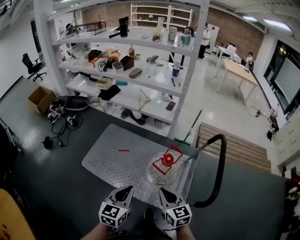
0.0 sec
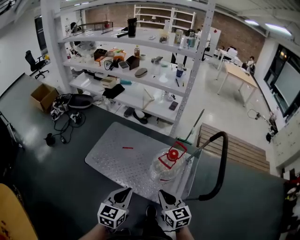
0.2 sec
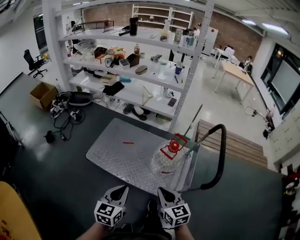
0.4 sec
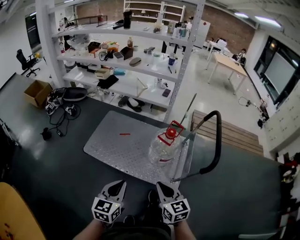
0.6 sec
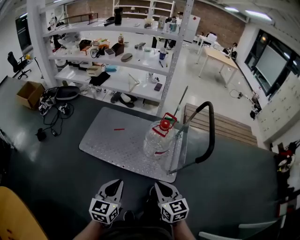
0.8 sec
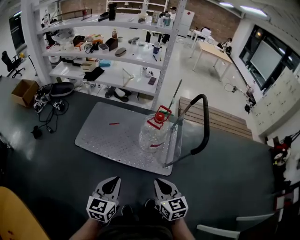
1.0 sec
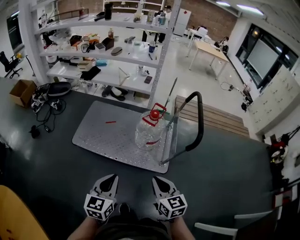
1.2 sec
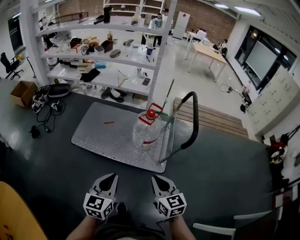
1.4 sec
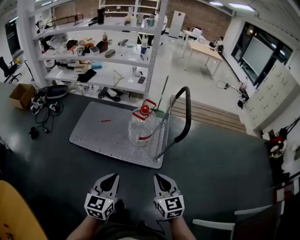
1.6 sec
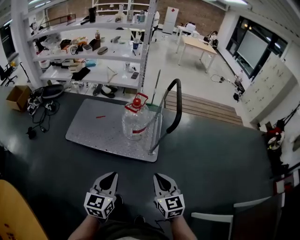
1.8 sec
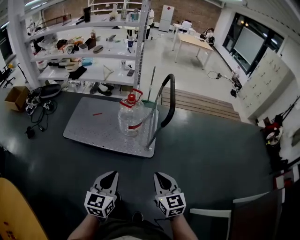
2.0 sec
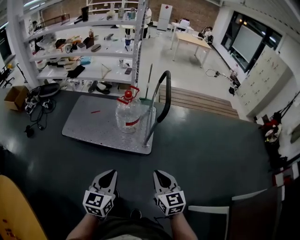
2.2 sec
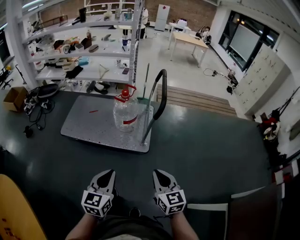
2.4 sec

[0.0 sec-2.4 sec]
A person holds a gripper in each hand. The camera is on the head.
0.0 sec to 1.2 sec: The grippers both shift backward by about 25 cm.
1.2 sec to 2.4 sec: The two grippers go approximately 25 cm backward and to the right.

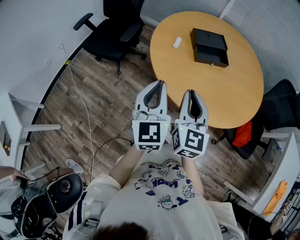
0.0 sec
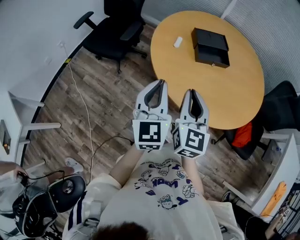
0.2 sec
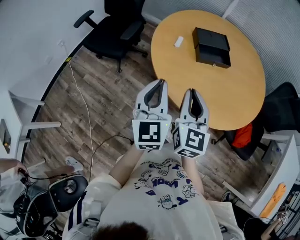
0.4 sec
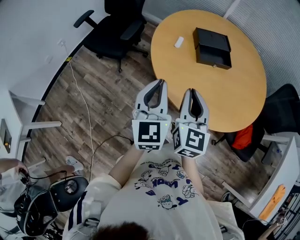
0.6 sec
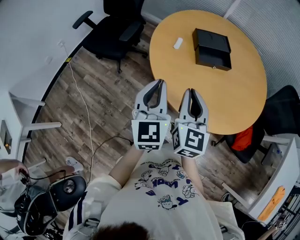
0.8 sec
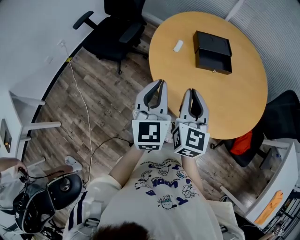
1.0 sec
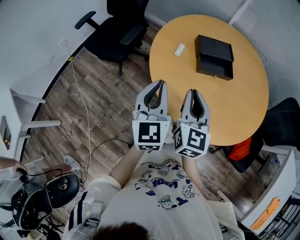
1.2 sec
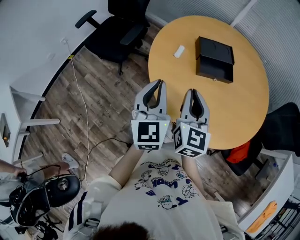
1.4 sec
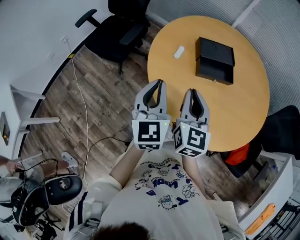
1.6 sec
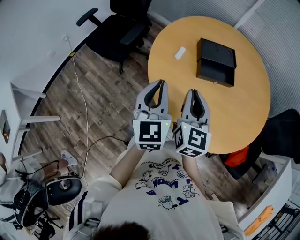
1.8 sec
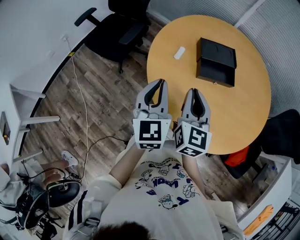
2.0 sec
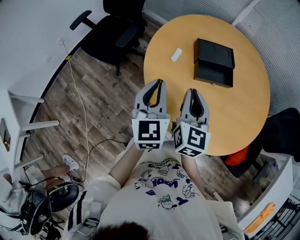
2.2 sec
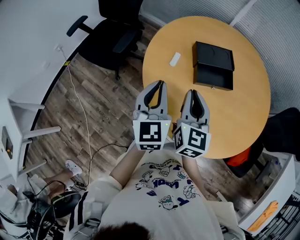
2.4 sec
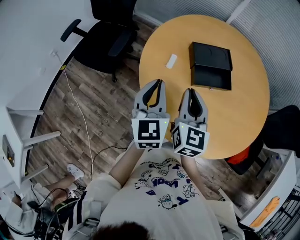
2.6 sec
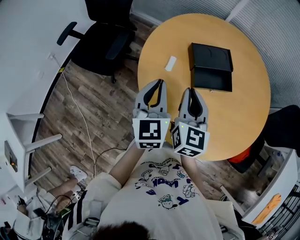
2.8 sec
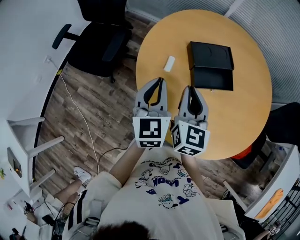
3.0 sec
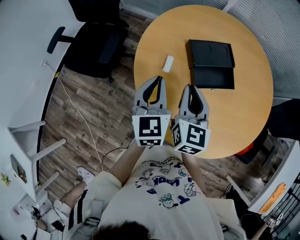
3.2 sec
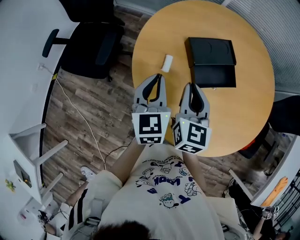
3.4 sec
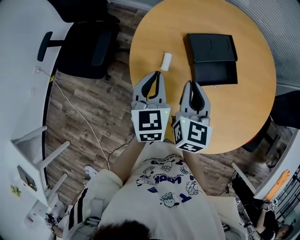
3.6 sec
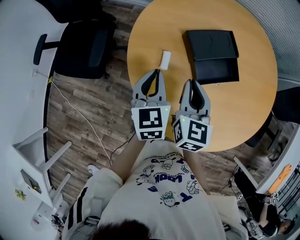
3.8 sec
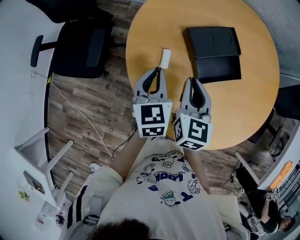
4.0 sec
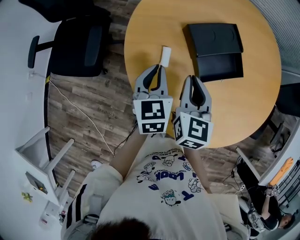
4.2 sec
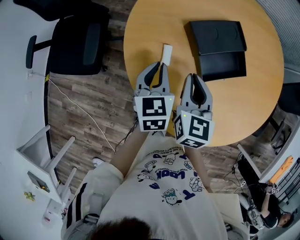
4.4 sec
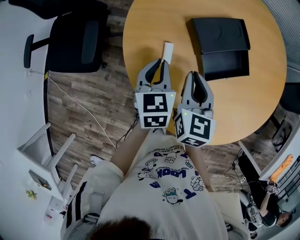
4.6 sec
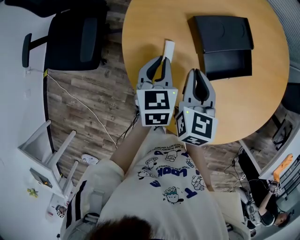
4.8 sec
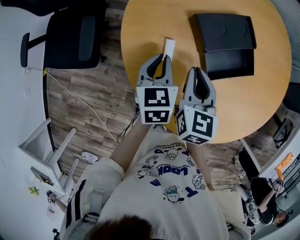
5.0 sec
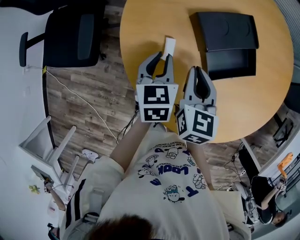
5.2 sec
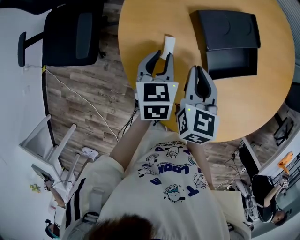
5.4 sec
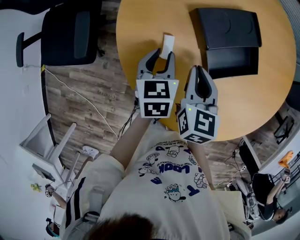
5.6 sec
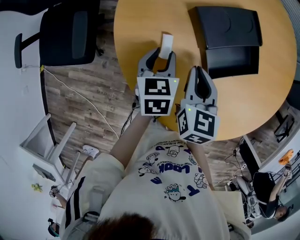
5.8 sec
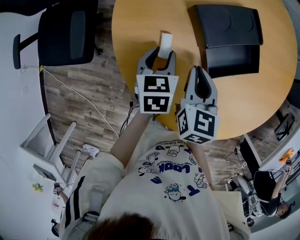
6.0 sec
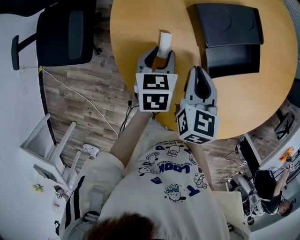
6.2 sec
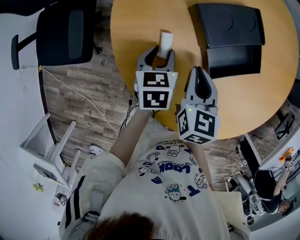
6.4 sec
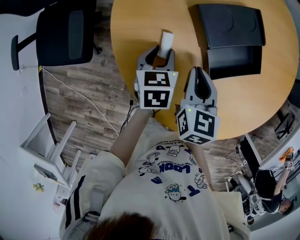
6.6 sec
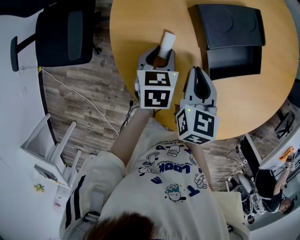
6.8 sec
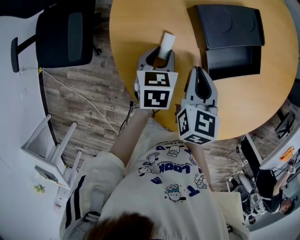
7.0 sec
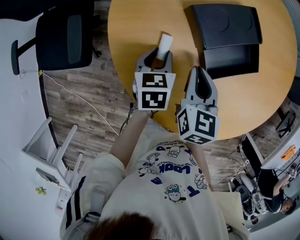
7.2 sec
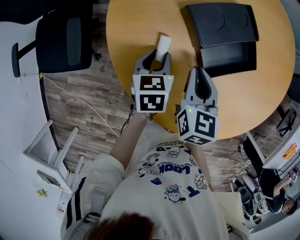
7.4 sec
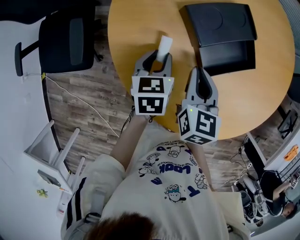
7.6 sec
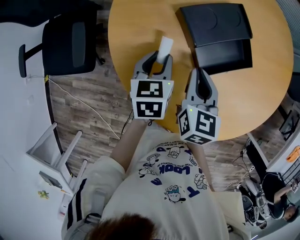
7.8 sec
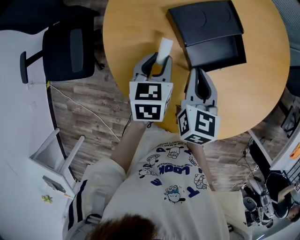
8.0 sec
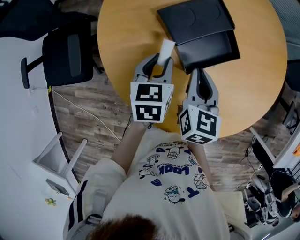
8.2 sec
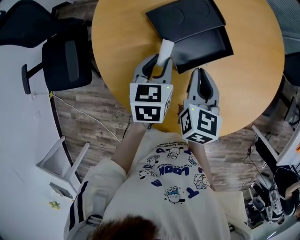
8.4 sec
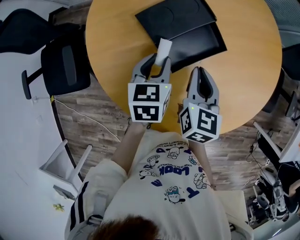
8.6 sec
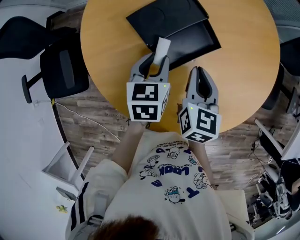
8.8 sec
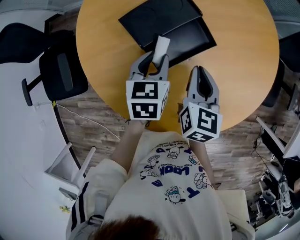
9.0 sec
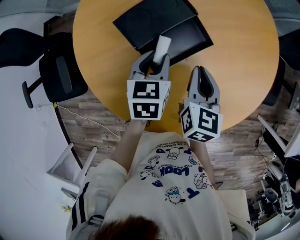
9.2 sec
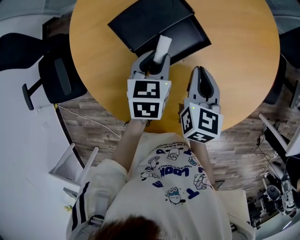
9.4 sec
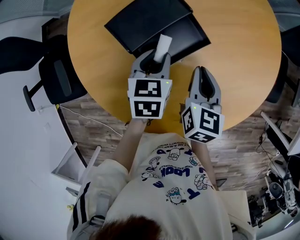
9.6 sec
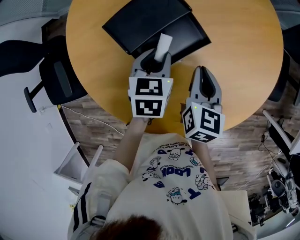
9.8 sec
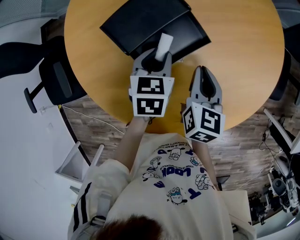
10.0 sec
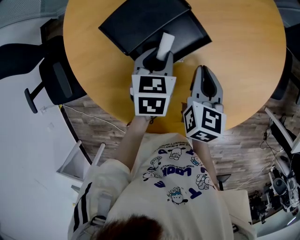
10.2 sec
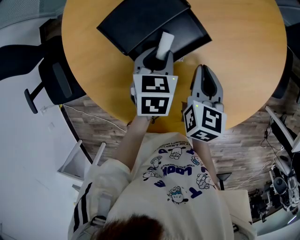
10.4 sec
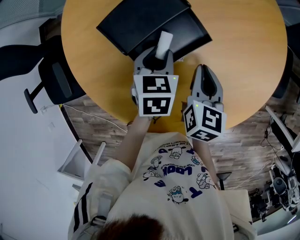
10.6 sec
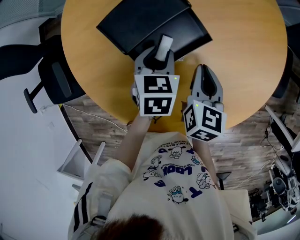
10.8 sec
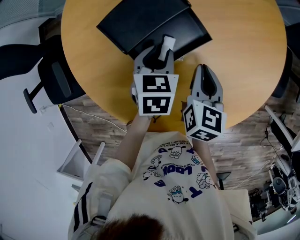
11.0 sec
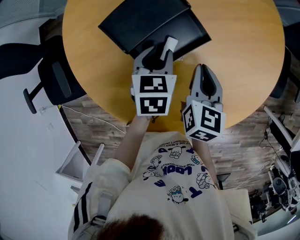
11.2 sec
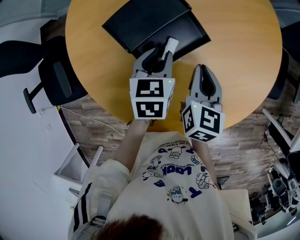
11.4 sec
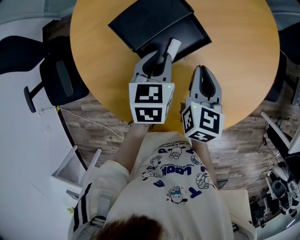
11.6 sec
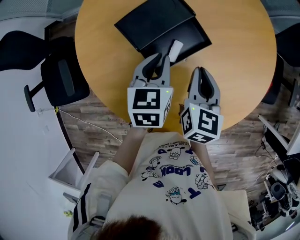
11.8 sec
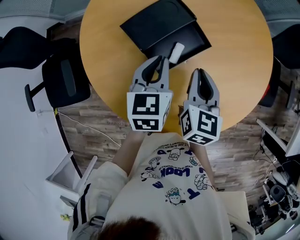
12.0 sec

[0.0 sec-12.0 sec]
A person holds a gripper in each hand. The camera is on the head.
0.0 sec to 1.6 sec: The two grippers go approximately 10 cm forward.
1.6 sec to 3.0 sec: Both grippers travel together forward, about 15 cm.
3.0 sec to 4.4 sec: Both grippers move downward and forward, approximately 15 cm. The left gripper rotates approximately 20 degrees.
4.4 sec to 6.0 sec: Both grippers travel together downward, roughly 10 cm. The left gripper opens up.
6.0 sec to 7.6 sec: The grippers make only small movements.
7.6 sec to 9.0 sec: The left gripper travels to the right and upward by about 15 cm. The right gripper shifts roughly 15 cm to the right.
9.0 sec to 10.4 sec: The left gripper changes place by roughly 5 cm. Meanwhile the right gripper ends up some 5 cm from where it was.
10.4 sec to 12.0 sec: Both grippers move upward, some 10 cm. The left gripper turns by some 20 degrees, and closes up.

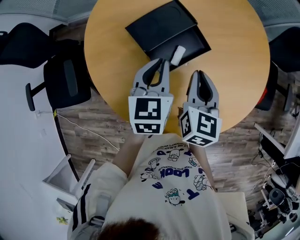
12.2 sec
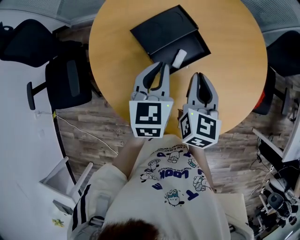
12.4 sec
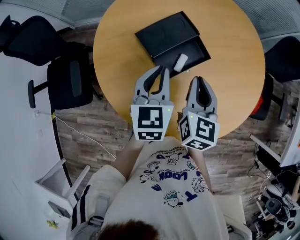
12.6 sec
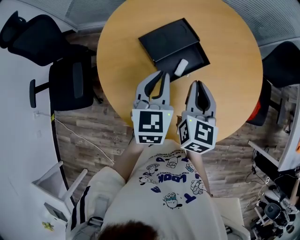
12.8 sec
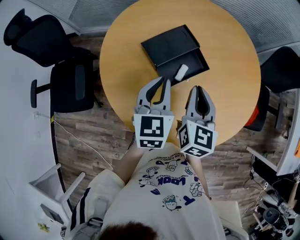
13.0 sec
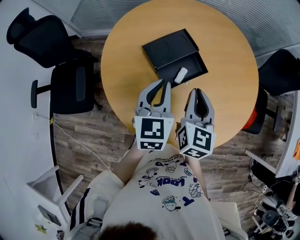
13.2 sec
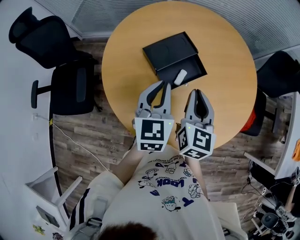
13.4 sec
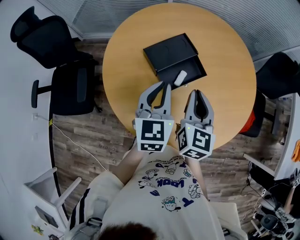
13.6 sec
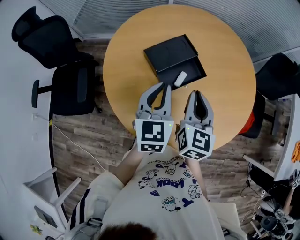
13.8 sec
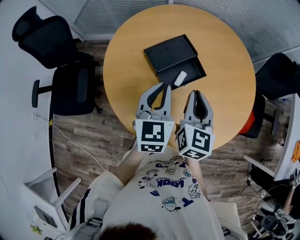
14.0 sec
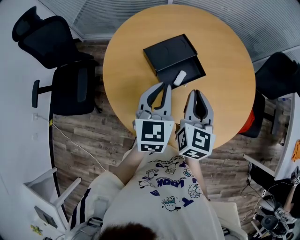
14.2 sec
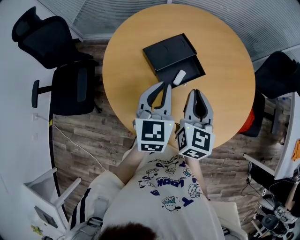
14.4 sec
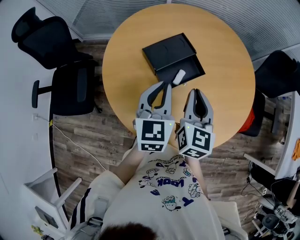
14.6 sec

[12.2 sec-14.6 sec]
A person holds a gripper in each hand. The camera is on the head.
12.2 sec to 13.4 sec: The right gripper goes roughly 5 cm upward. The left gripper is displaced upward and backward by some 10 cm.
13.4 sec to 14.6 sec: The grippers make only small movements.

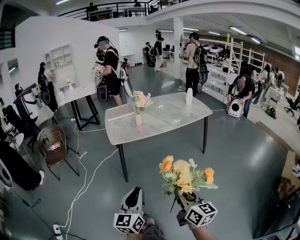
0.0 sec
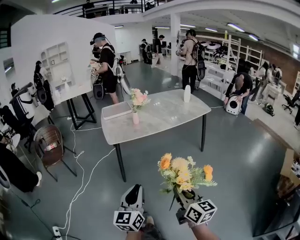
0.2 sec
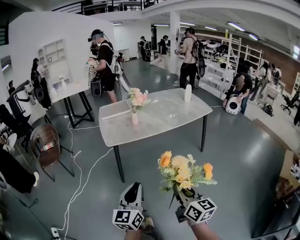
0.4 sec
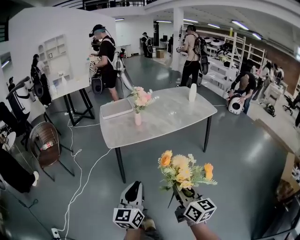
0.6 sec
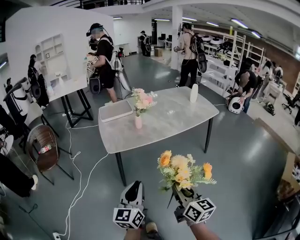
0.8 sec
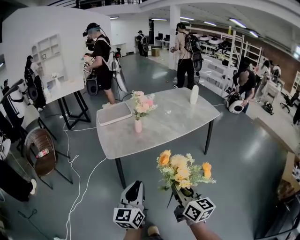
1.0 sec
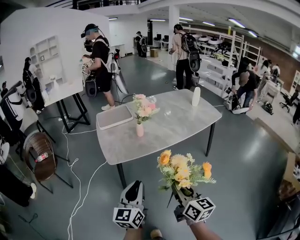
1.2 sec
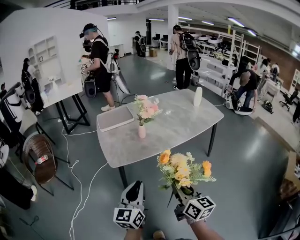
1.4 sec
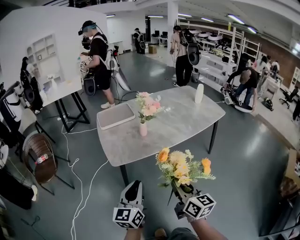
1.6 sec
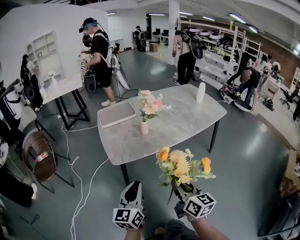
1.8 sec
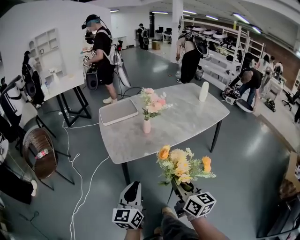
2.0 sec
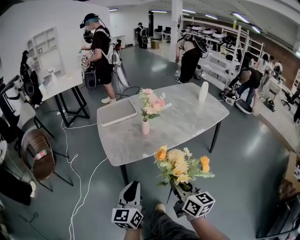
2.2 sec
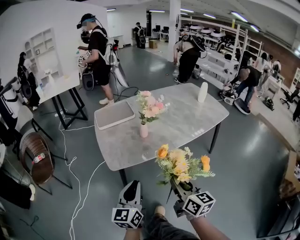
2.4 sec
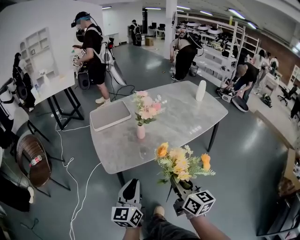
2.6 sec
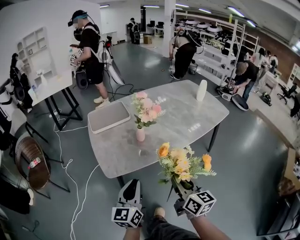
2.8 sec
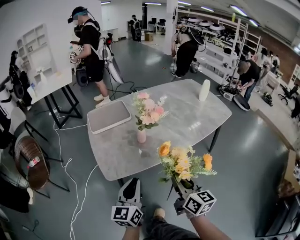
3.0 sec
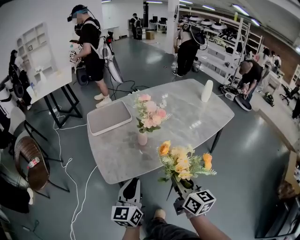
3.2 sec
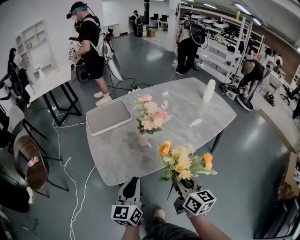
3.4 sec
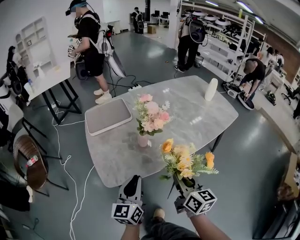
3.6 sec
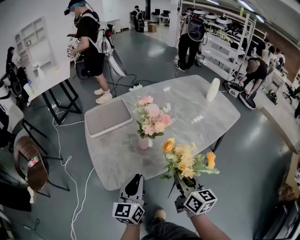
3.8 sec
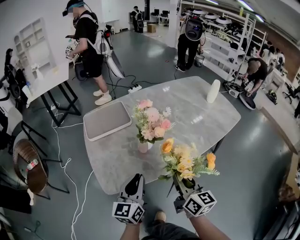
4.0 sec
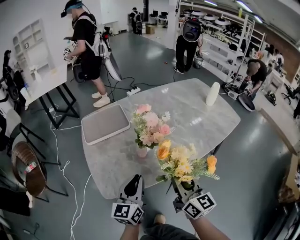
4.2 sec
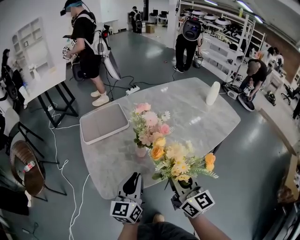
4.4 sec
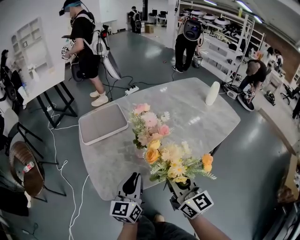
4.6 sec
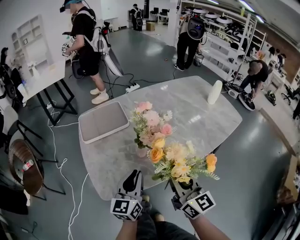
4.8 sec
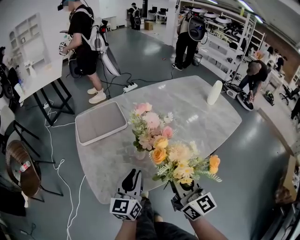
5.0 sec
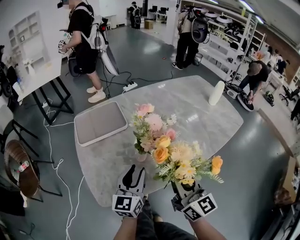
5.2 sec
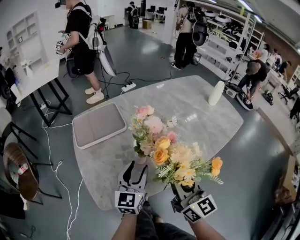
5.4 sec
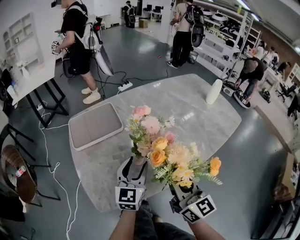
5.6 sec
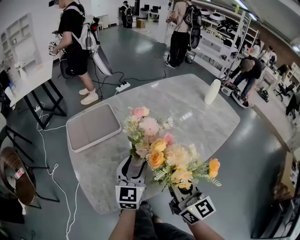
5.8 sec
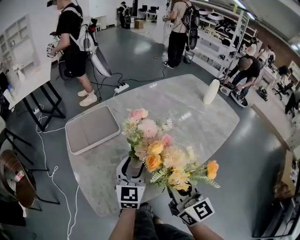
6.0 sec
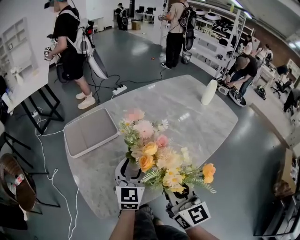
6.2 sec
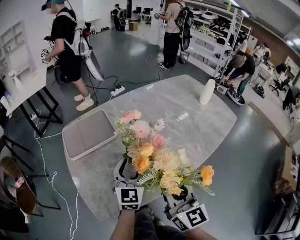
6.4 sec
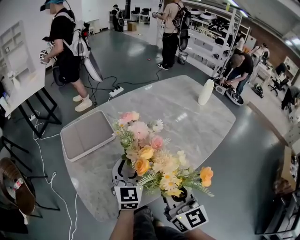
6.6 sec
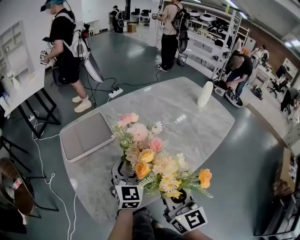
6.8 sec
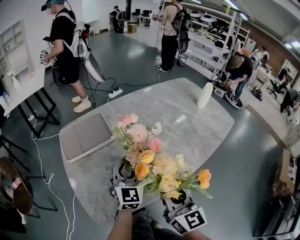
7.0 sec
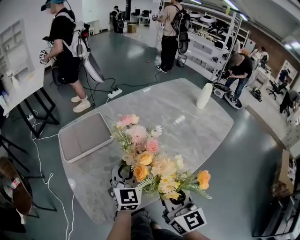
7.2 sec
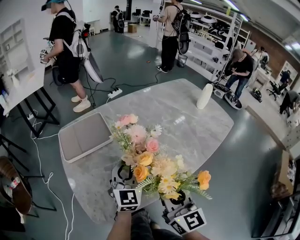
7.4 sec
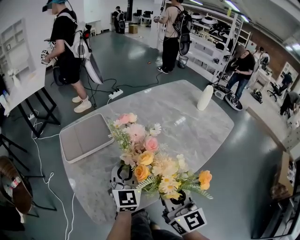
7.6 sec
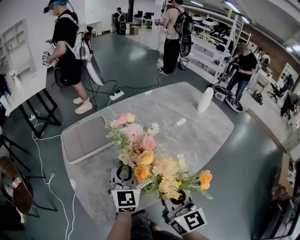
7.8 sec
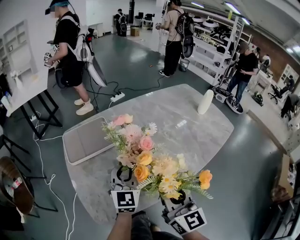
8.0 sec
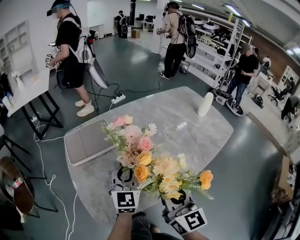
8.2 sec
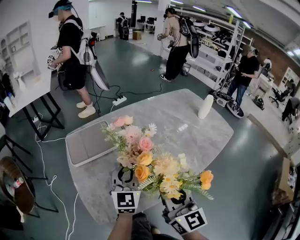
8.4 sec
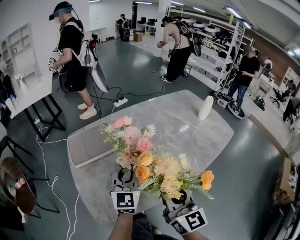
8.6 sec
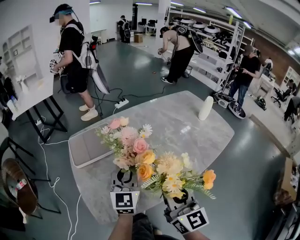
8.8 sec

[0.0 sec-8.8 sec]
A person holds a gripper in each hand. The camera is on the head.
0.0 sec to 1.4 sec: Both grippers travel together forward, roughly 30 cm.
1.4 sec to 3.0 sec: Both grippers move forward, roughly 15 cm.
3.0 sec to 4.4 sec: The two grippers go approximately 15 cm forward.
4.4 sec to 5.8 sec: The left gripper goes approximately 10 cm forward, and opens up.
5.8 sec to 7.4 sec: The left gripper closes its fingers.
7.4 sec to 8.8 sec: The two grippers go roughly 5 cm upward.
